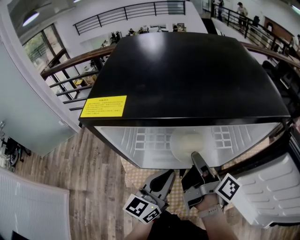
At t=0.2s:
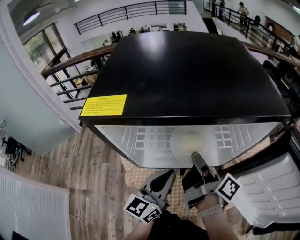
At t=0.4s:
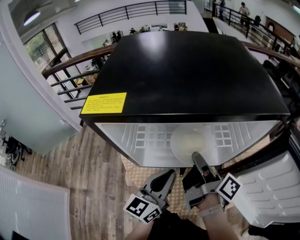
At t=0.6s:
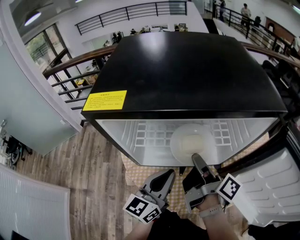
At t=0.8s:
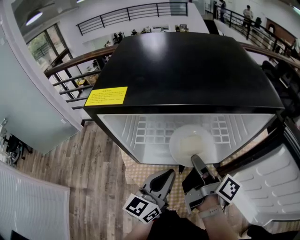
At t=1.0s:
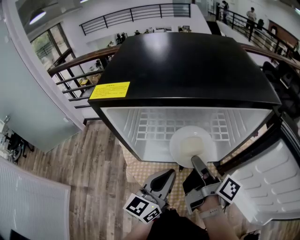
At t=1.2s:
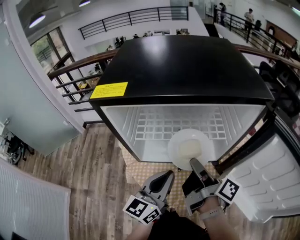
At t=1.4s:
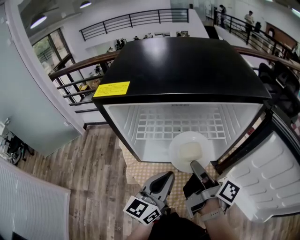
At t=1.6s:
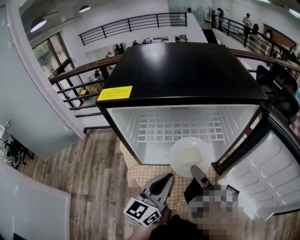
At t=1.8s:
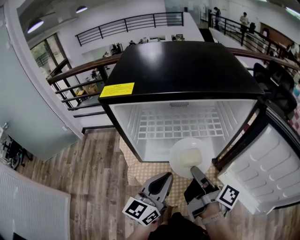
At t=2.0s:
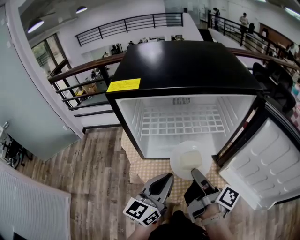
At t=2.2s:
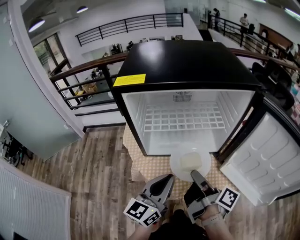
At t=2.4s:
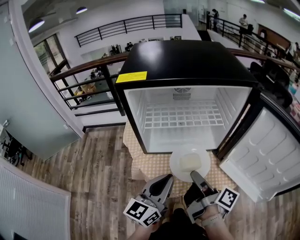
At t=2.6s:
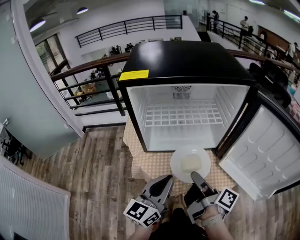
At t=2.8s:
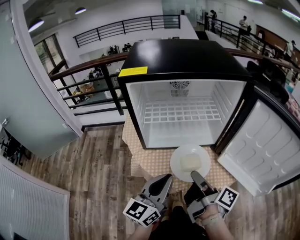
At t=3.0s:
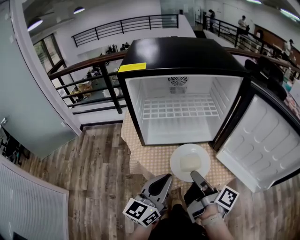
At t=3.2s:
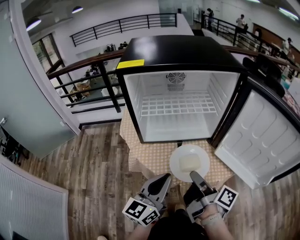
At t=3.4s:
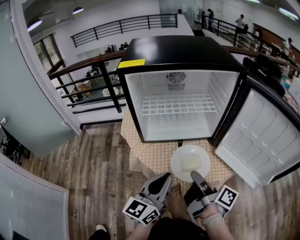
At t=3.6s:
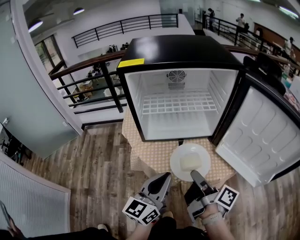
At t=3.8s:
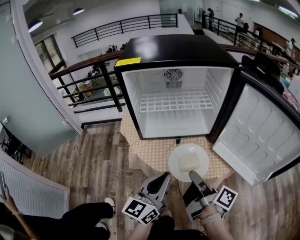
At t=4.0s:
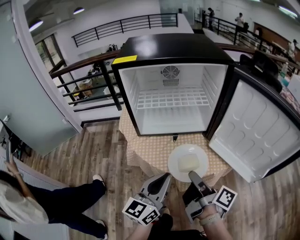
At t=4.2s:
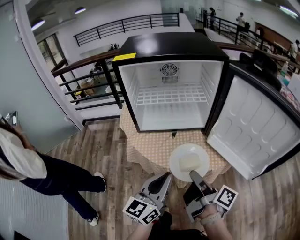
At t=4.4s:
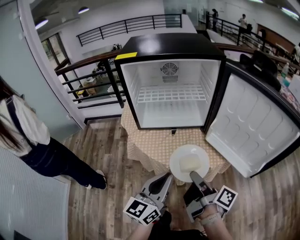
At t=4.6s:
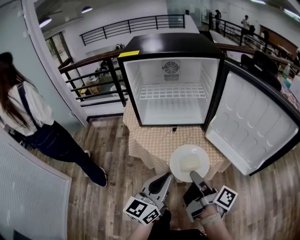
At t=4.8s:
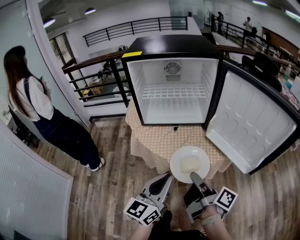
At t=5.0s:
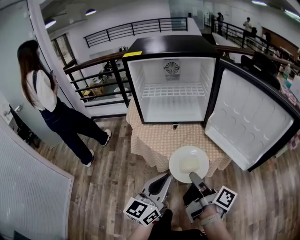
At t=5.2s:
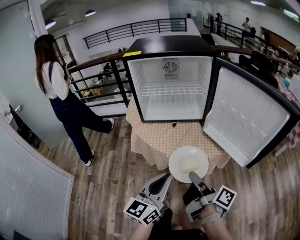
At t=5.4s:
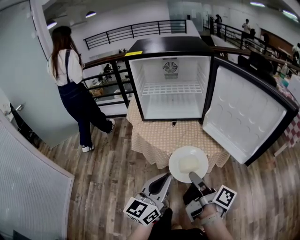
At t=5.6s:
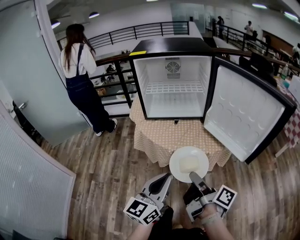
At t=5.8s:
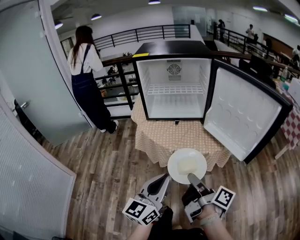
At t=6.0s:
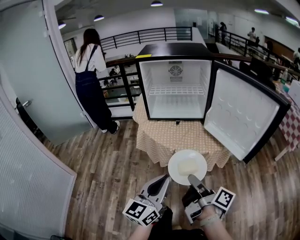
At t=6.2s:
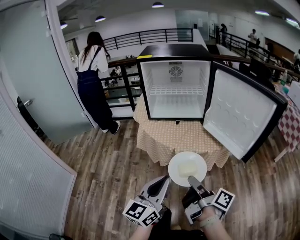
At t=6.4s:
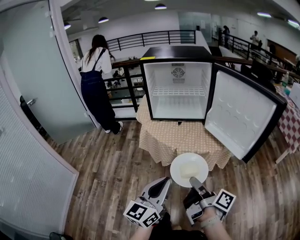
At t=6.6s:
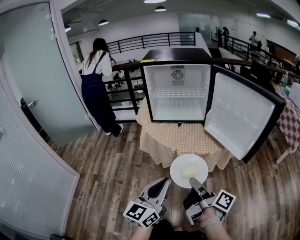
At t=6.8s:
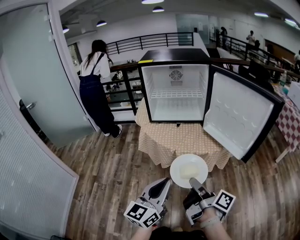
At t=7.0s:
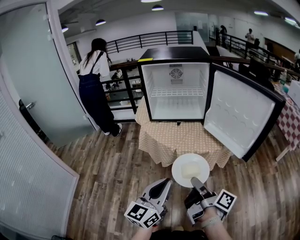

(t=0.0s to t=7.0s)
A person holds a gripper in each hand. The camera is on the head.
t=0.0s - t=1.4s: Both grippers travel together backward, roughly 5 cm.
t=1.4s - t=2.8s: Both grippers travel together backward, roughly 10 cm.
t=2.8s - t=4.2s: Both grippers move backward and to the right, approximately 10 cm.
t=4.2s - t=5.6s: Both grippers move backward, approximately 15 cm.
t=5.6s - t=7.0s: Both grippers travel together backward, about 5 cm.

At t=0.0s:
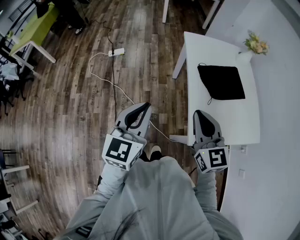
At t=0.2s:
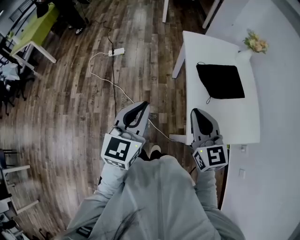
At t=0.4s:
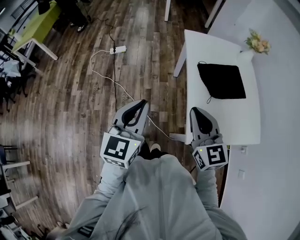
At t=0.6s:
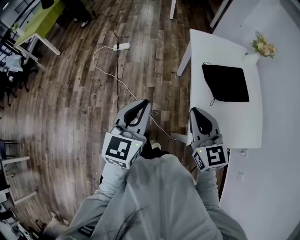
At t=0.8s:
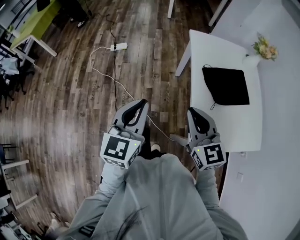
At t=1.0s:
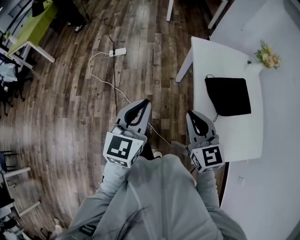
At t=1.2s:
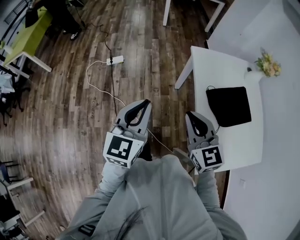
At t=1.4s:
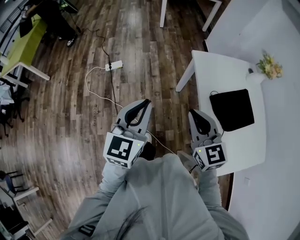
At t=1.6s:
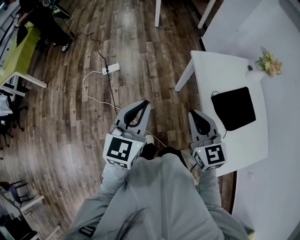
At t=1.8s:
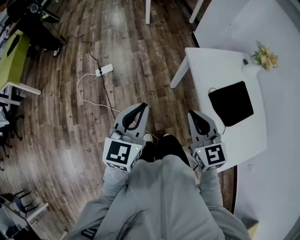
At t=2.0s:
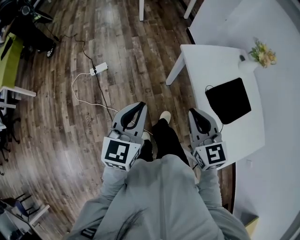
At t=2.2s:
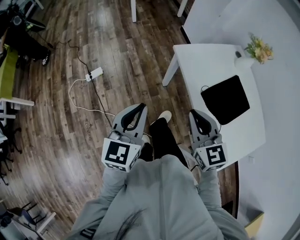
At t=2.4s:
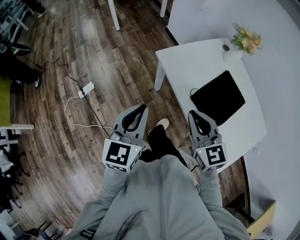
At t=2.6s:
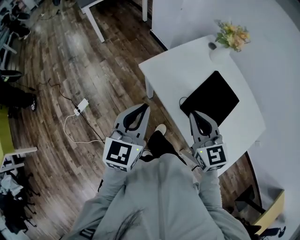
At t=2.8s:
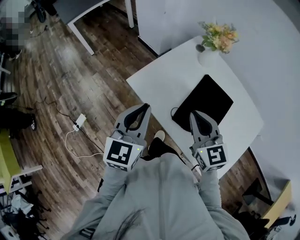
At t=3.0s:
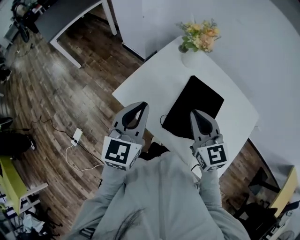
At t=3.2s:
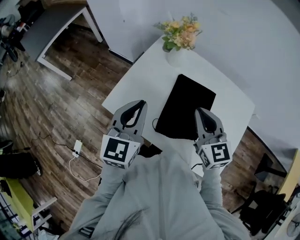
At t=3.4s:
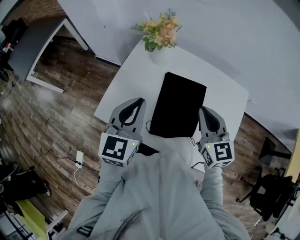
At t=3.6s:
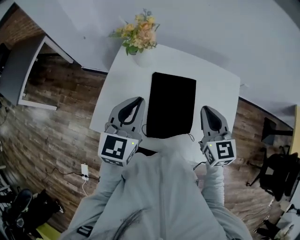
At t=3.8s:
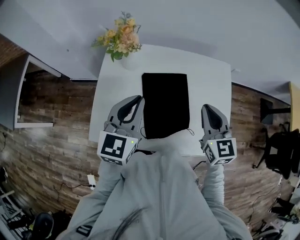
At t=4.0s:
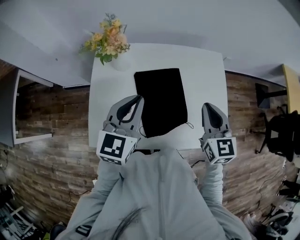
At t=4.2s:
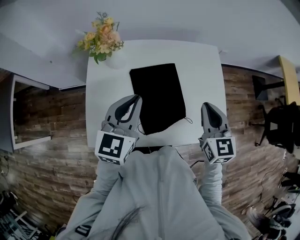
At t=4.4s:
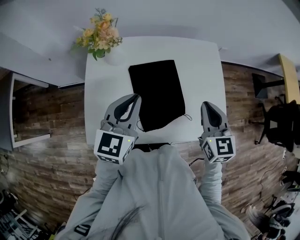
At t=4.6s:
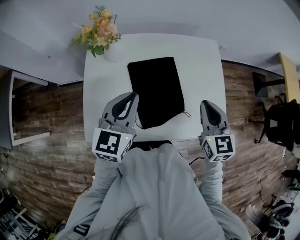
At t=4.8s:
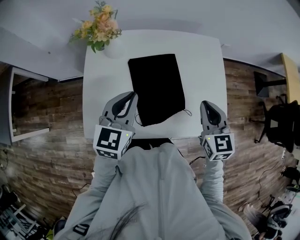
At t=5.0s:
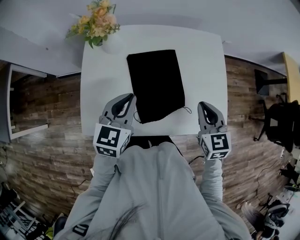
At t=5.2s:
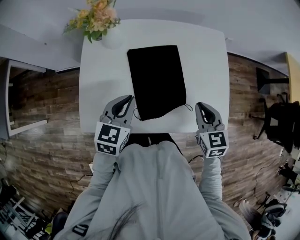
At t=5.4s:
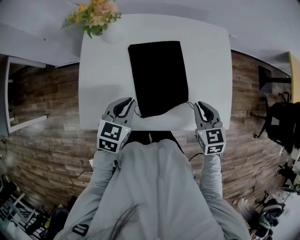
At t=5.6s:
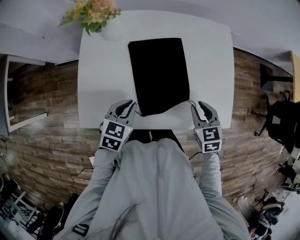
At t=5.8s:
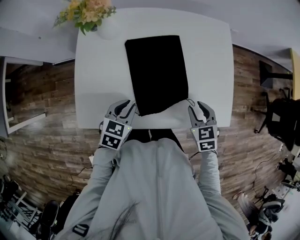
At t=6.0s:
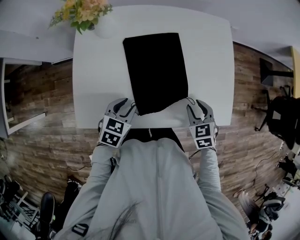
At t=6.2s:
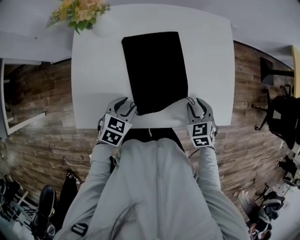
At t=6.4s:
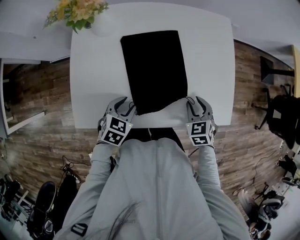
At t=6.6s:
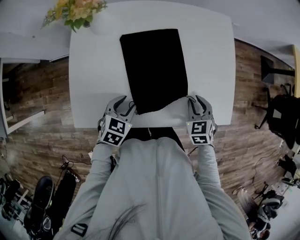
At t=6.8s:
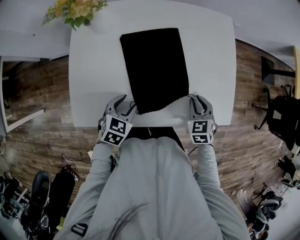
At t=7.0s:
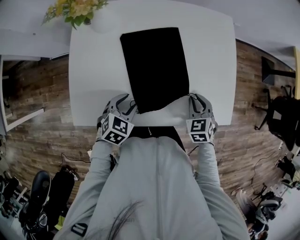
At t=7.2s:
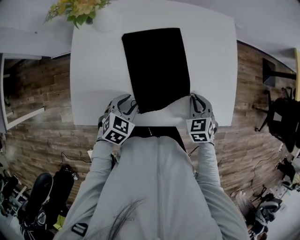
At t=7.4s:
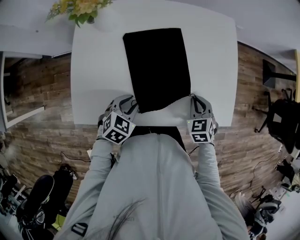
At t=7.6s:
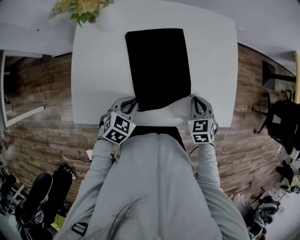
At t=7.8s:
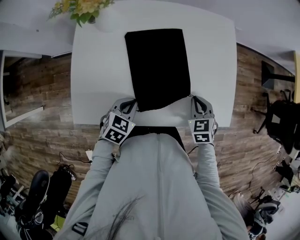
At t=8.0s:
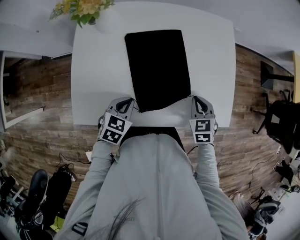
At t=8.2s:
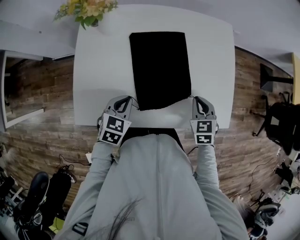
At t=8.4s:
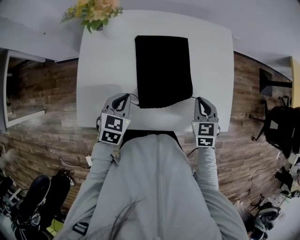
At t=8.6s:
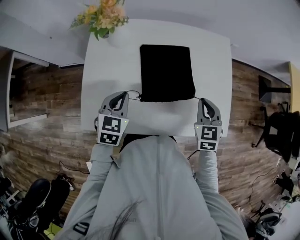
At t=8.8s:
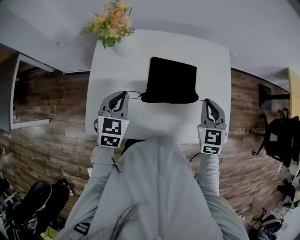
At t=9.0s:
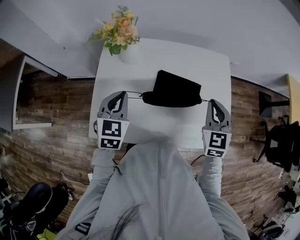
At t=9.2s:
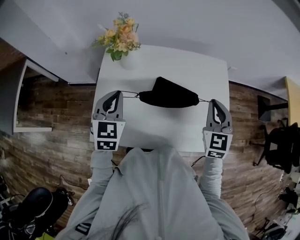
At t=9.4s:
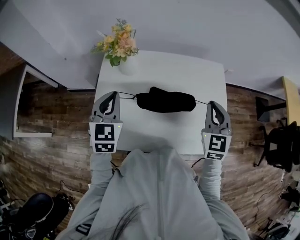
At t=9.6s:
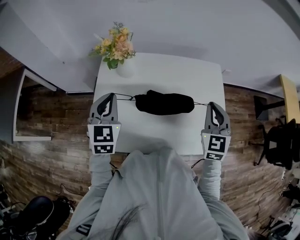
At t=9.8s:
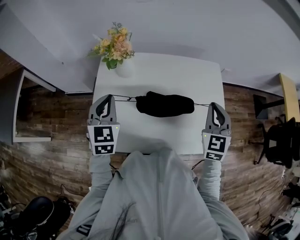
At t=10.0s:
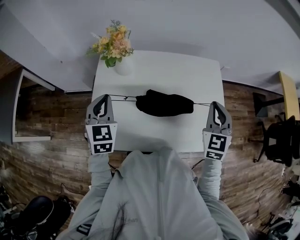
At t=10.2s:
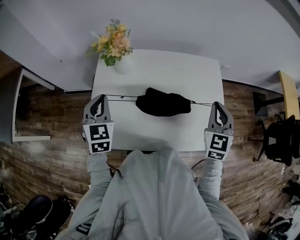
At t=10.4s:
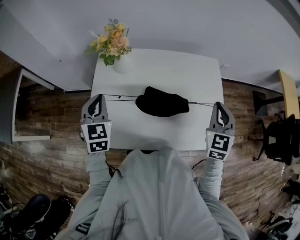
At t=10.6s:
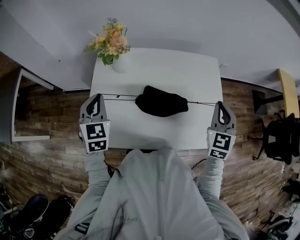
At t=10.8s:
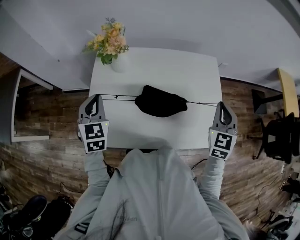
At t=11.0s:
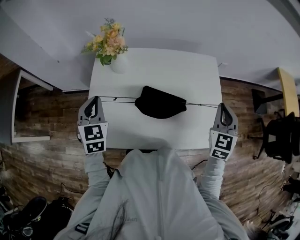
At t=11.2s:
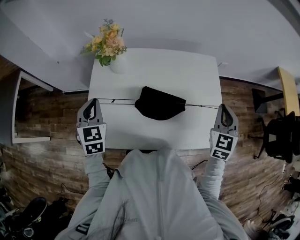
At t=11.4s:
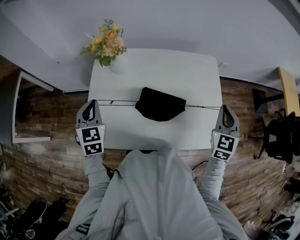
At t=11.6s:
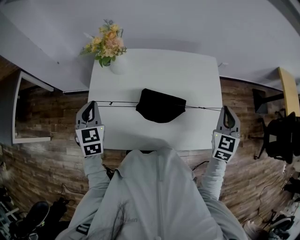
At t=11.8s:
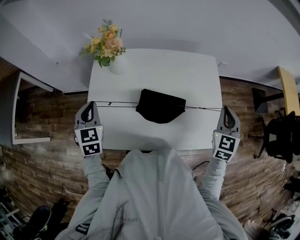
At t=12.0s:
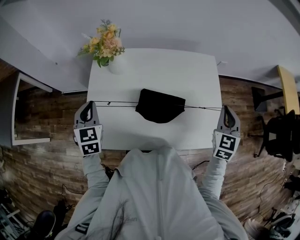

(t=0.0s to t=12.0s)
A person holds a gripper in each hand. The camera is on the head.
t=0.0s - t=1.6s: The right gripper is displaced forward and to the left by approximately 25 cm, while the left gripper shifts approximately 25 cm forward.
t=1.6s - t=3.0s: The left gripper ends up roughly 40 cm from where it was, and swivels approximately 40 degrees. The right gripper shifts by about 30 cm, and rotates approximately 40 degrees.
t=3.0s - t=4.4s: The left gripper shifts by about 20 cm, and changes its angle by approximately 40 degrees. Meanwhile the right gripper moves about 20 cm, and swivels about 50 degrees.
t=4.4s - t=6.0s: Both grippers move downward, about 20 cm. The right gripper tilts its fingers about 30 degrees downward, and opens up. The left gripper angles its fingers downward, by roughly 30 degrees, and opens up.
t=6.0s - t=7.6s: The right gripper closes its fingers, while the left gripper closes.
t=7.6s - t=9.0s: The left gripper goes about 25 cm upward, to the left and forward, and turns by about 40 degrees. Meanwhile the right gripper travels upward and forward by roughly 20 cm, and swivels about 30 degrees.
t=9.0s - t=10.4s: The left gripper shifts about 5 cm to the left. Meanwhile the right gripper changes place by about 5 cm.
t=10.4s - t=12.0s: The right gripper moves to the right, approximately 5 cm.

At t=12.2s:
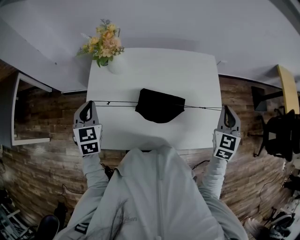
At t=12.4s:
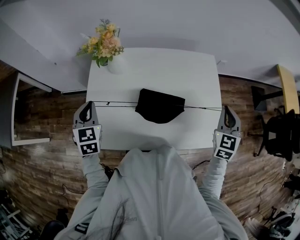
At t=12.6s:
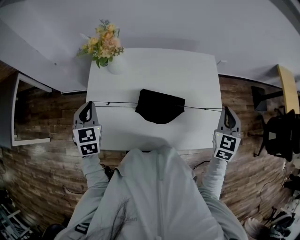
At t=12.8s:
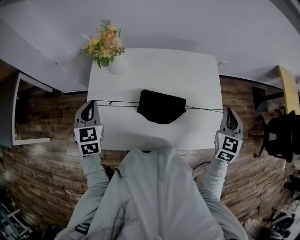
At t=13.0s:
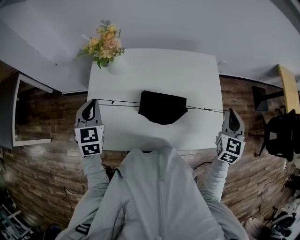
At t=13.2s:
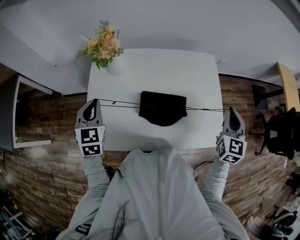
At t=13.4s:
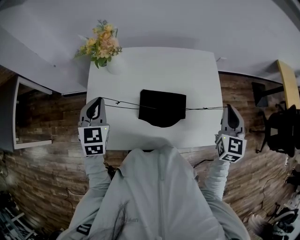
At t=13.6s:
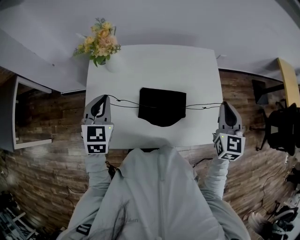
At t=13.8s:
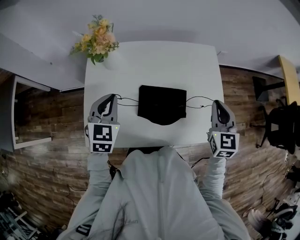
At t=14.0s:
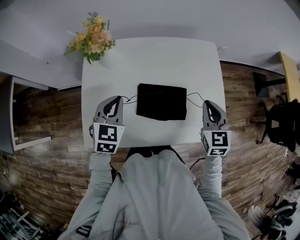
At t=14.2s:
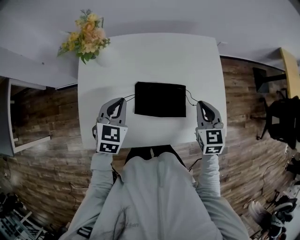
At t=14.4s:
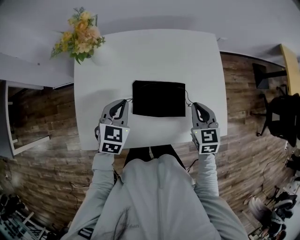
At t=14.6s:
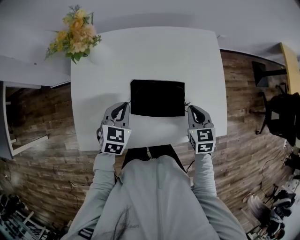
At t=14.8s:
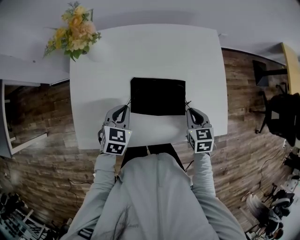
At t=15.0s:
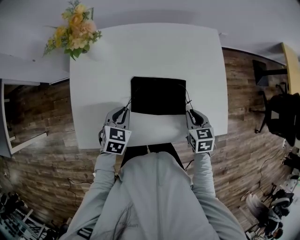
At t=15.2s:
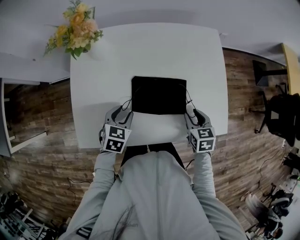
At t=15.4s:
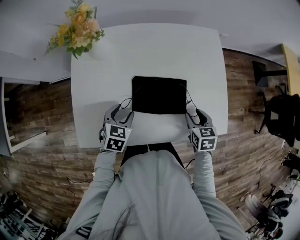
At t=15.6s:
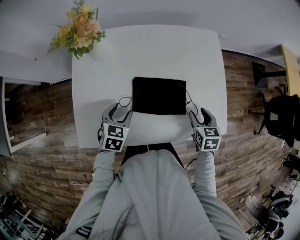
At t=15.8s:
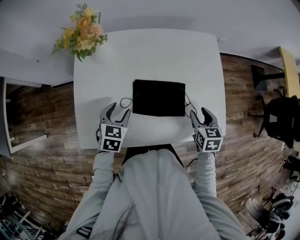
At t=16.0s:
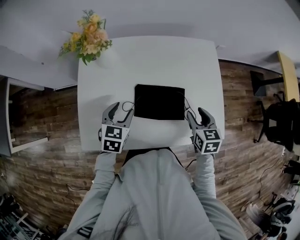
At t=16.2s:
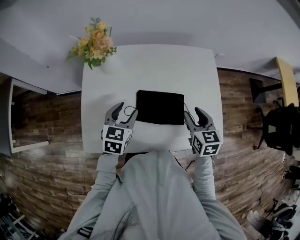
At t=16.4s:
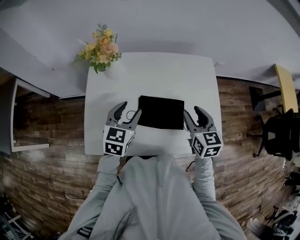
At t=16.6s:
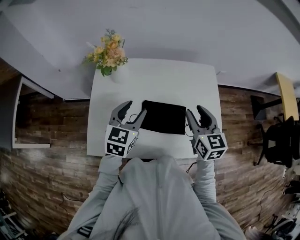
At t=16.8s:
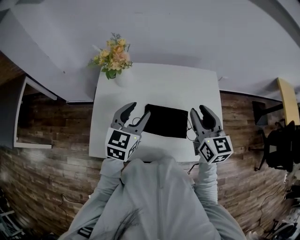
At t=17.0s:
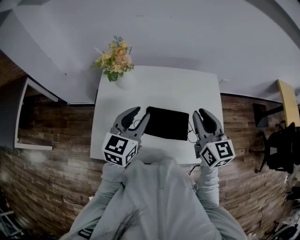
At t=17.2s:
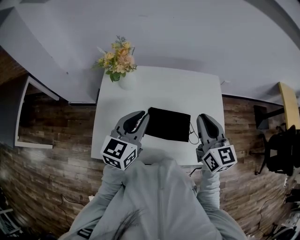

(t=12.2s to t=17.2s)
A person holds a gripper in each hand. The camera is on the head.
t=12.2s - t=13.8s: The left gripper goes approximately 10 cm to the right, while the right gripper shifts by approximately 5 cm.
t=13.8s - t=15.6s: Both grippers travel together downward, about 20 cm. The right gripper swivels approximately 30 degrees, and opens up; the left gripper rotates approximately 20 degrees, and opens.
t=15.6s - t=17.2s: Both grippers move upward, about 25 cm. The left gripper angles its fingers upward, by approximately 40 degrees, and closes its fingers. The right gripper tilts its fingers about 40 degrees upward, and closes.
